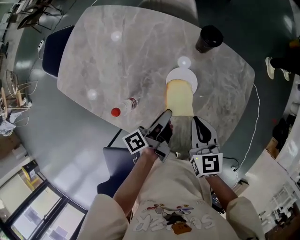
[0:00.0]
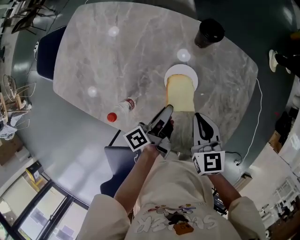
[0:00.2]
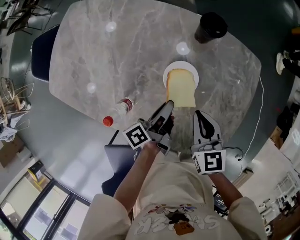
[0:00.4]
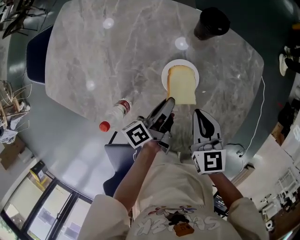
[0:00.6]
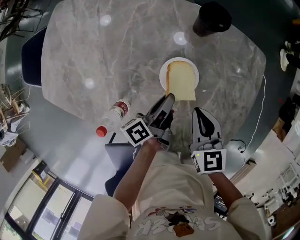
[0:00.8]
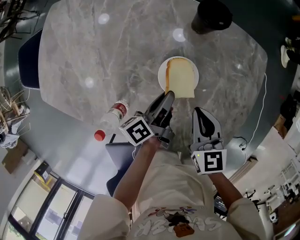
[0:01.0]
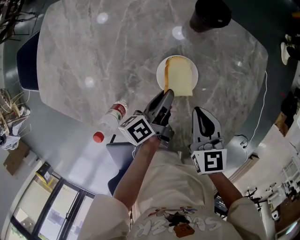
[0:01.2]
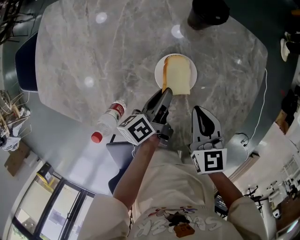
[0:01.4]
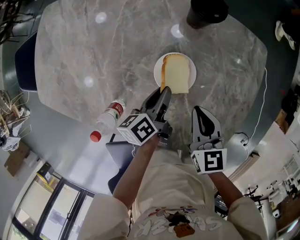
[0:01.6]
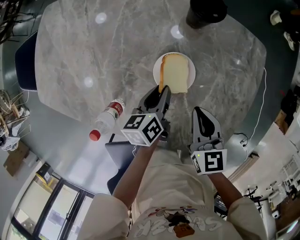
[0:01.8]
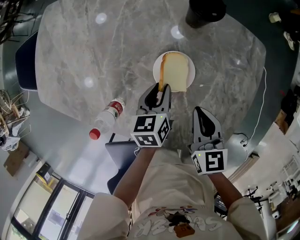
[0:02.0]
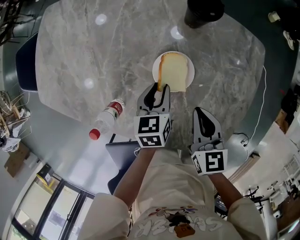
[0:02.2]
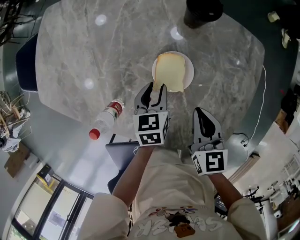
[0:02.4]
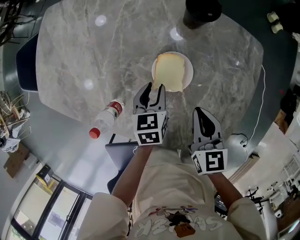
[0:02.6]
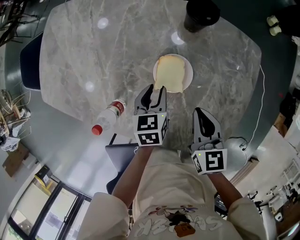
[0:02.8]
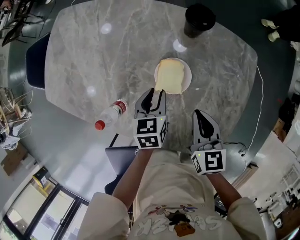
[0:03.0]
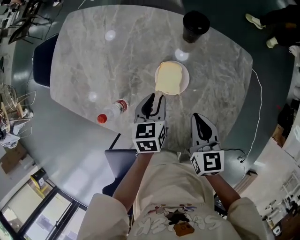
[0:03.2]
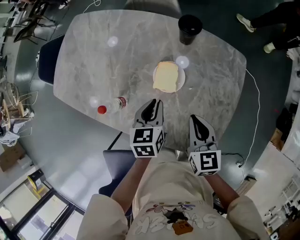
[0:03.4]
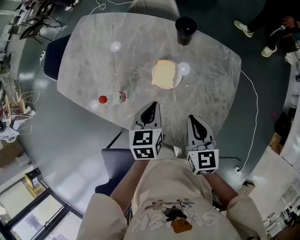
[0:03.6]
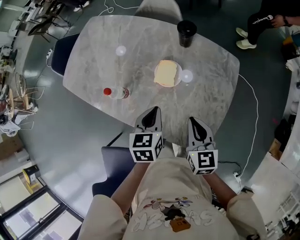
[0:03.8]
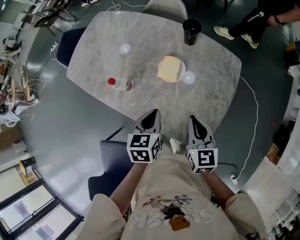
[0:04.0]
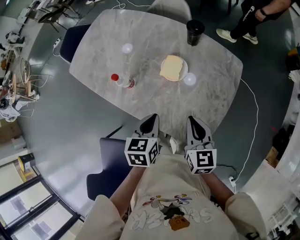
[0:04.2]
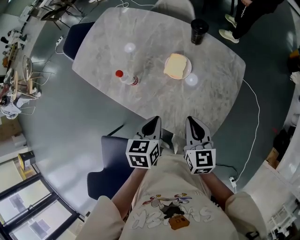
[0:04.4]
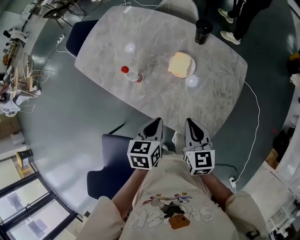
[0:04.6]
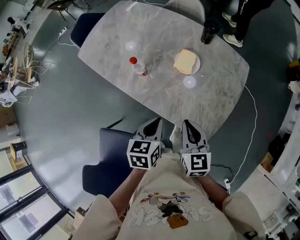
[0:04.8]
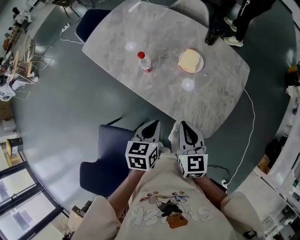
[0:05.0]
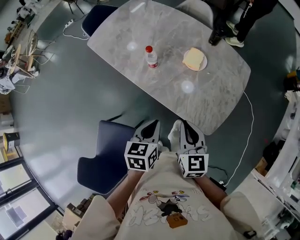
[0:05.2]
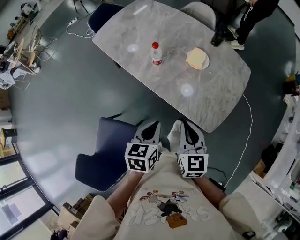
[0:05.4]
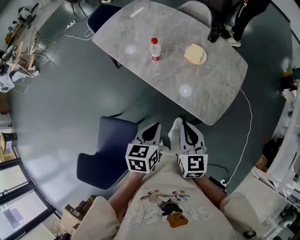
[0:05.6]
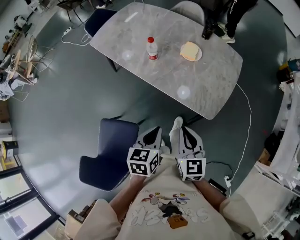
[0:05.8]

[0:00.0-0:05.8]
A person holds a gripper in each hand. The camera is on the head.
0:00.0 to 0:01.4: The right gripper travels downward by some 10 cm.
0:02.8 to 0:04.4: The right gripper changes place by some 20 cm.
0:04.4 to 0:05.8: The right gripper changes place by approximately 30 cm.

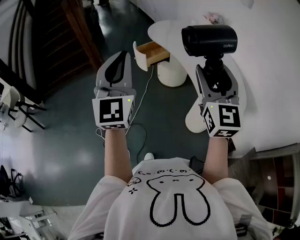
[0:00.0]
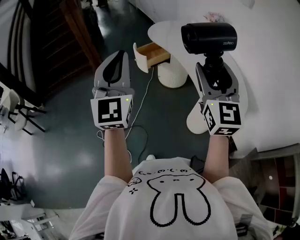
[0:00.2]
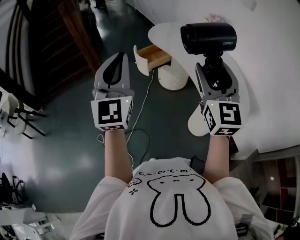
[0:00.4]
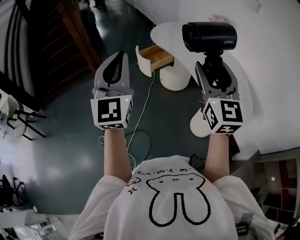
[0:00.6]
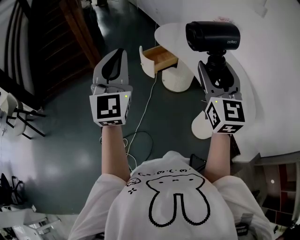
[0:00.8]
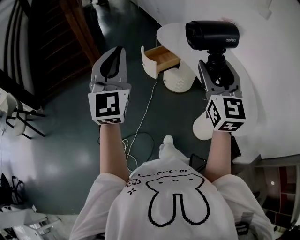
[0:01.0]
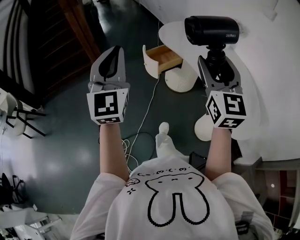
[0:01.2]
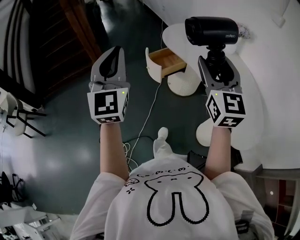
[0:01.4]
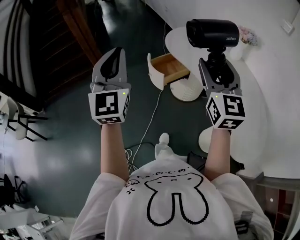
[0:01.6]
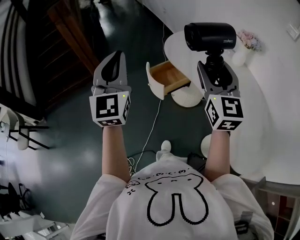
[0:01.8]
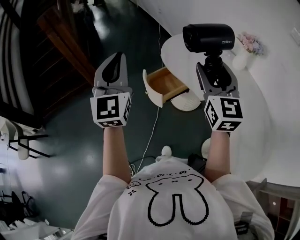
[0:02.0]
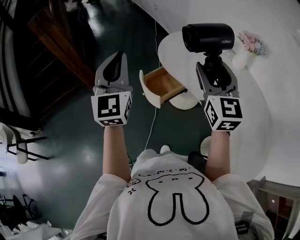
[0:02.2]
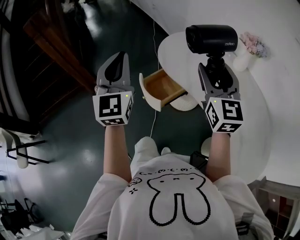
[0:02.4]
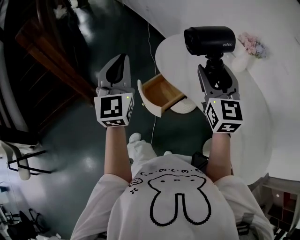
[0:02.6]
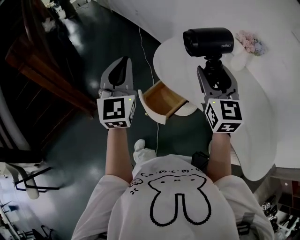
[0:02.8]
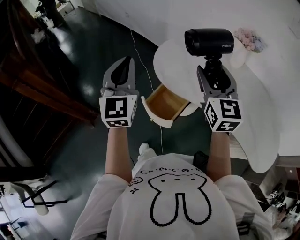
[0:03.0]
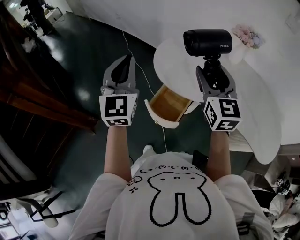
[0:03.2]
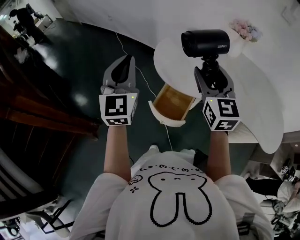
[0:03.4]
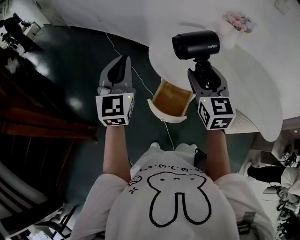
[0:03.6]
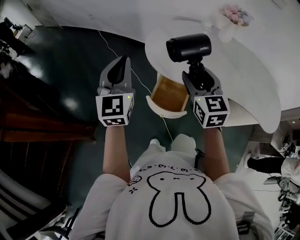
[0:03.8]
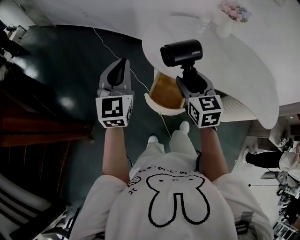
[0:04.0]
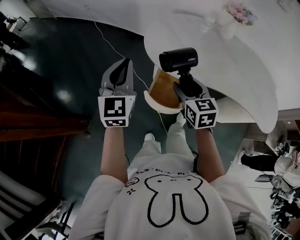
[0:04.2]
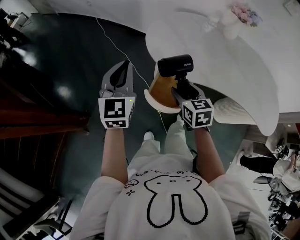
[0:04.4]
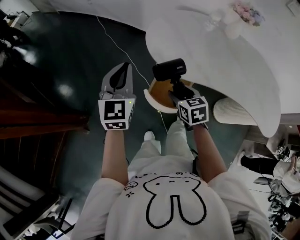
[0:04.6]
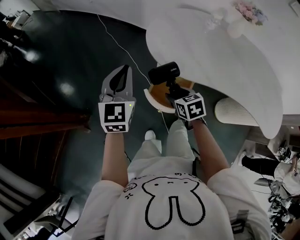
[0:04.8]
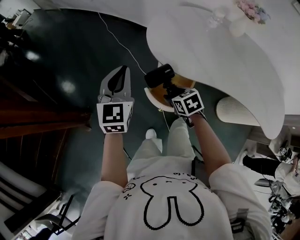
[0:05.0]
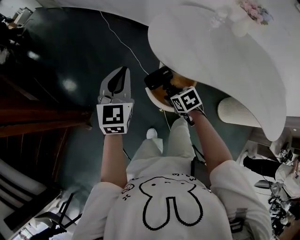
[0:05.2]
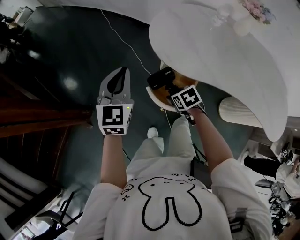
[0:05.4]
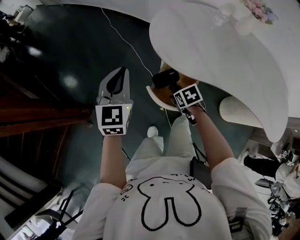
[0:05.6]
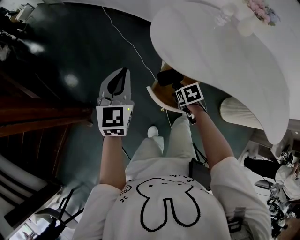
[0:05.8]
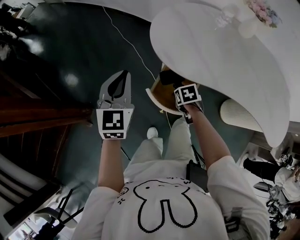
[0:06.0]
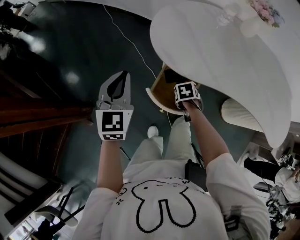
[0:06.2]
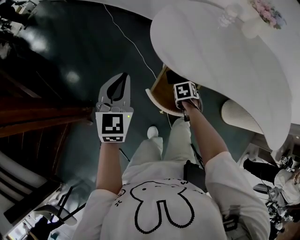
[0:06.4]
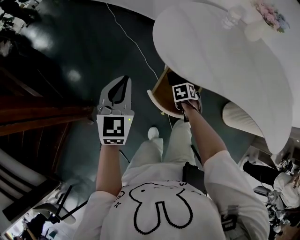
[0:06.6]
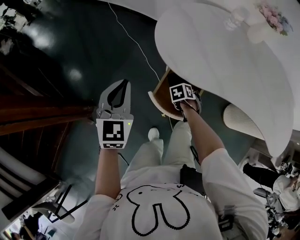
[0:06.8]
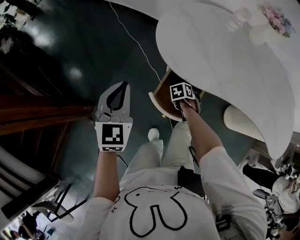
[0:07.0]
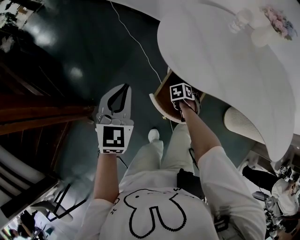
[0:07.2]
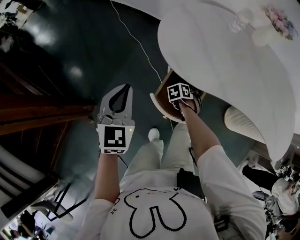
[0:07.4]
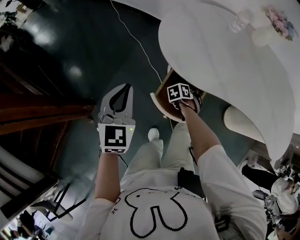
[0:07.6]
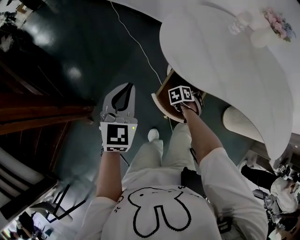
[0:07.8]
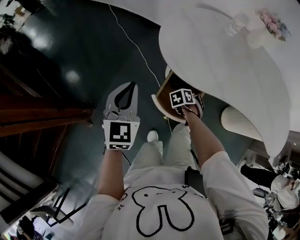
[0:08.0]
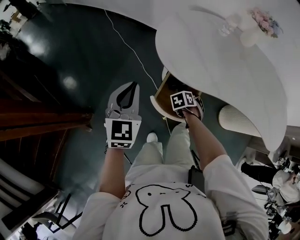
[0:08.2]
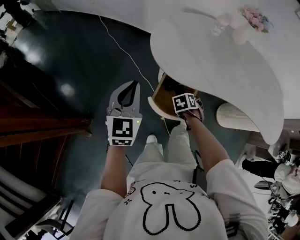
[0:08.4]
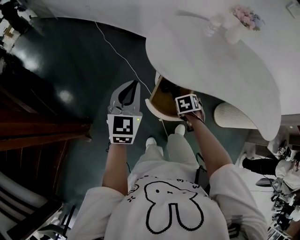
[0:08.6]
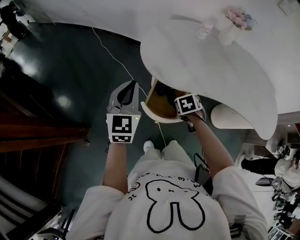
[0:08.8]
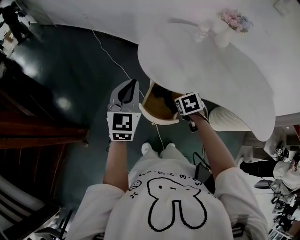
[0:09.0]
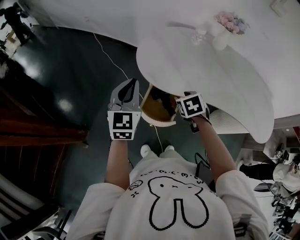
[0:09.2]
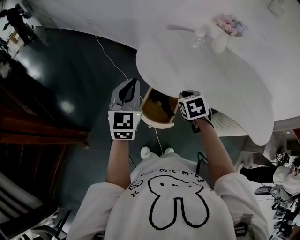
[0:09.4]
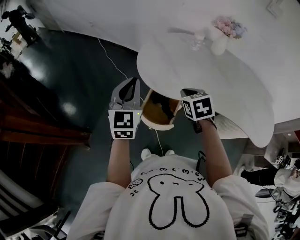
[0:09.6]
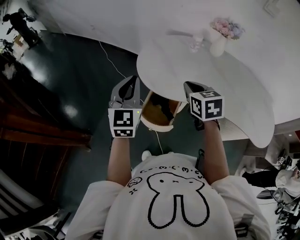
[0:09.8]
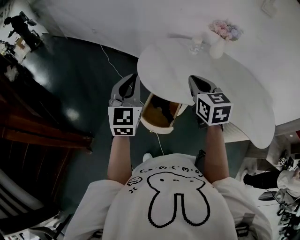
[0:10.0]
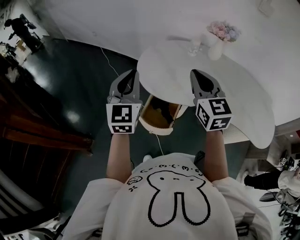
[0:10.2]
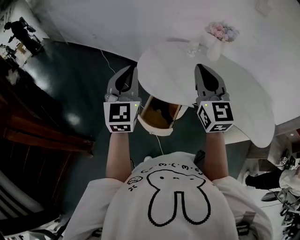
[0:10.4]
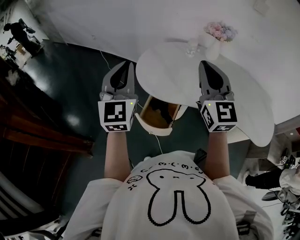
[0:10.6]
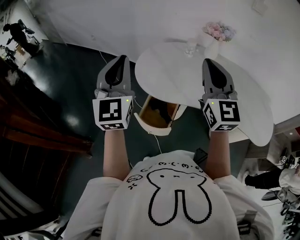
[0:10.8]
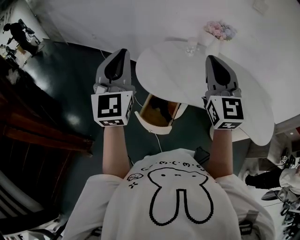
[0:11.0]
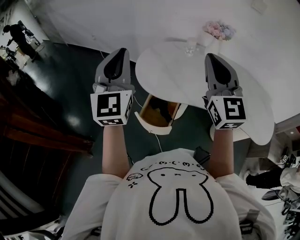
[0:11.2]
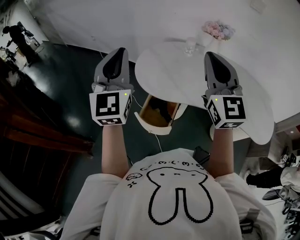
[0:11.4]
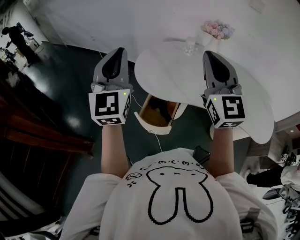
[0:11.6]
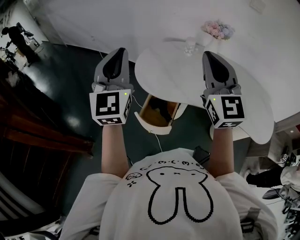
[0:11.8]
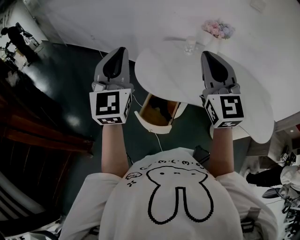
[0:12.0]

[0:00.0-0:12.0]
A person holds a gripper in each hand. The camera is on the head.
0:00.0 to 0:01.6: The left gripper heads forward and to the left, covering roughly 35 cm. Meanwhile the right gripper heads forward, covering approximately 30 cm.
0:01.6 to 0:03.0: Both grippers move forward, about 35 cm. The left gripper rotates approximately 30 degrees, while the right gripper swivels some 20 degrees.
0:03.0 to 0:04.4: The left gripper moves downward, to the left and forward, roughly 20 cm, and swivels approximately 20 degrees; the right gripper goes about 30 cm downward and to the left, and angles its fingers downward, by approximately 30 degrees.
0:04.4 to 0:06.0: The right gripper is displaced downward by roughly 20 cm, and tilts its fingers roughly 40 degrees downward. The left gripper moves downward, roughly 5 cm.
0:06.0 to 0:07.6: The right gripper heads downward, covering some 5 cm, and swivels about 30 degrees.
0:07.6 to 0:09.0: The left gripper travels upward by approximately 10 cm. Meanwhile the right gripper moves upward, some 20 cm, and rotates approximately 30 degrees.
0:09.0 to 0:10.4: The right gripper is displaced upward by some 35 cm, points its fingers some 70 degrees further upward, and closes its fingers; the left gripper heads upward, covering some 15 cm.
0:10.4 to 0:12.0: The two grippers go roughly 5 cm upward.

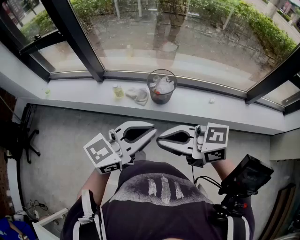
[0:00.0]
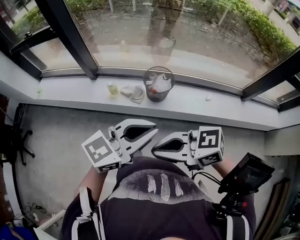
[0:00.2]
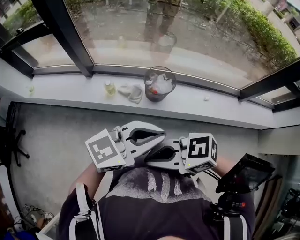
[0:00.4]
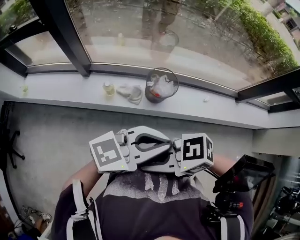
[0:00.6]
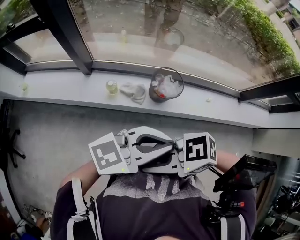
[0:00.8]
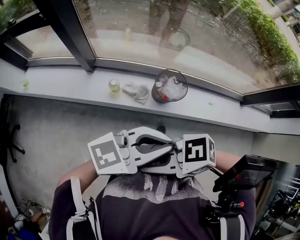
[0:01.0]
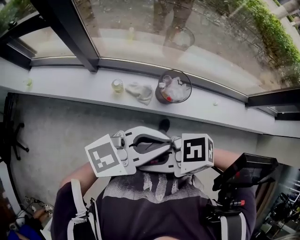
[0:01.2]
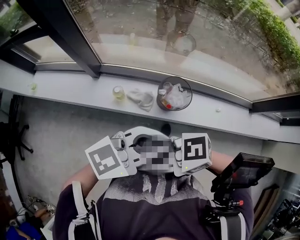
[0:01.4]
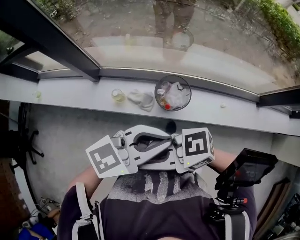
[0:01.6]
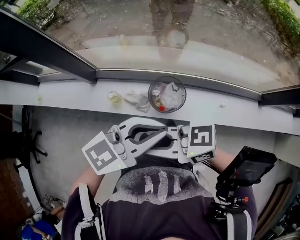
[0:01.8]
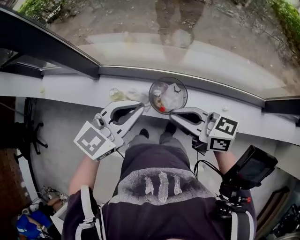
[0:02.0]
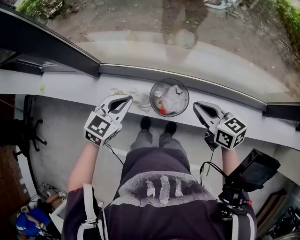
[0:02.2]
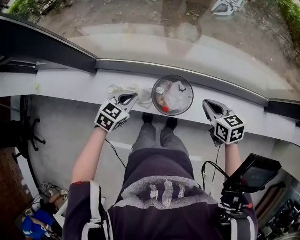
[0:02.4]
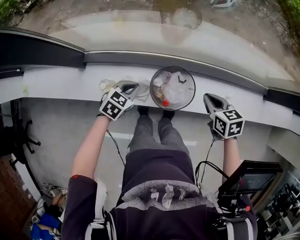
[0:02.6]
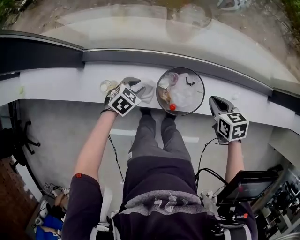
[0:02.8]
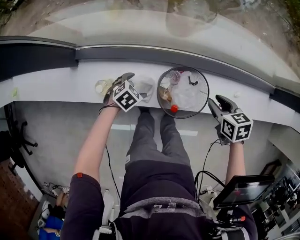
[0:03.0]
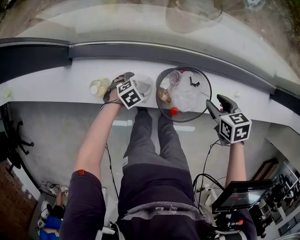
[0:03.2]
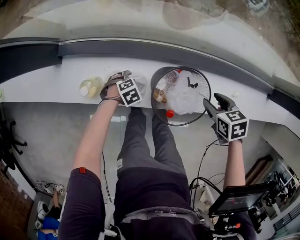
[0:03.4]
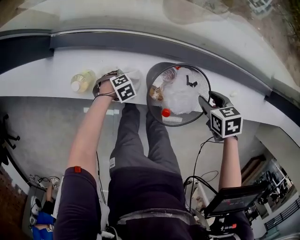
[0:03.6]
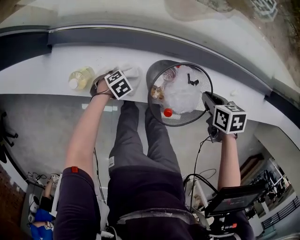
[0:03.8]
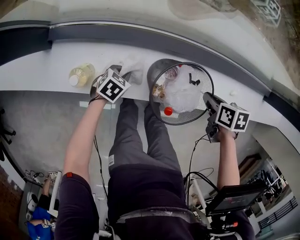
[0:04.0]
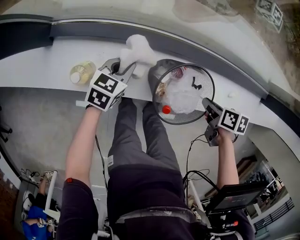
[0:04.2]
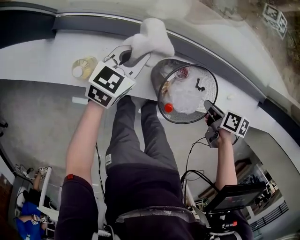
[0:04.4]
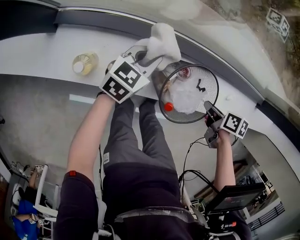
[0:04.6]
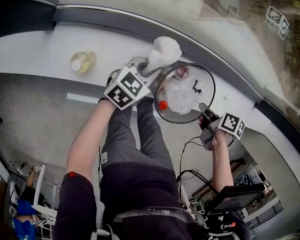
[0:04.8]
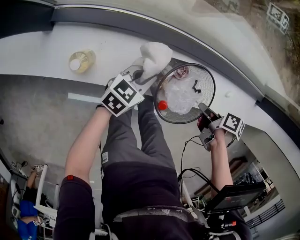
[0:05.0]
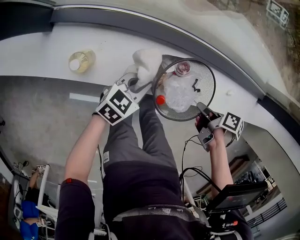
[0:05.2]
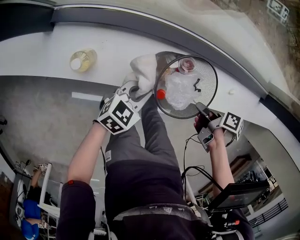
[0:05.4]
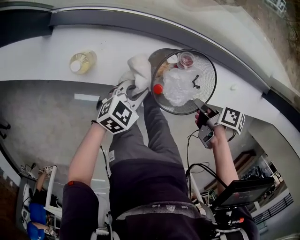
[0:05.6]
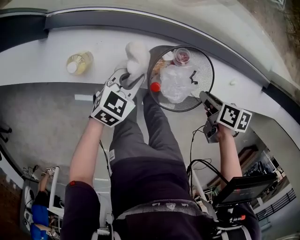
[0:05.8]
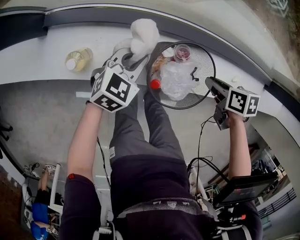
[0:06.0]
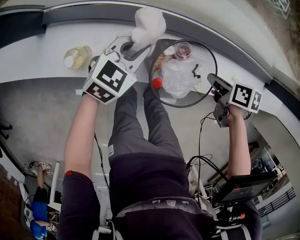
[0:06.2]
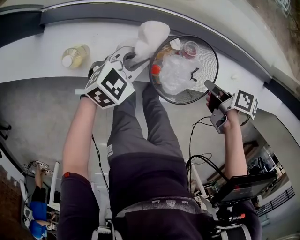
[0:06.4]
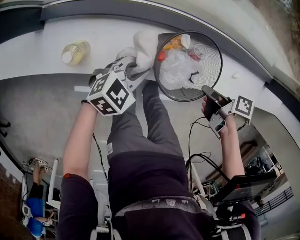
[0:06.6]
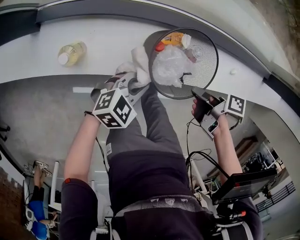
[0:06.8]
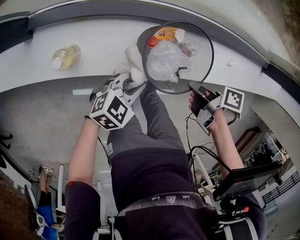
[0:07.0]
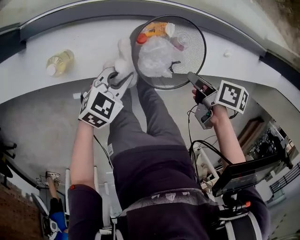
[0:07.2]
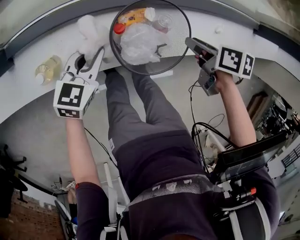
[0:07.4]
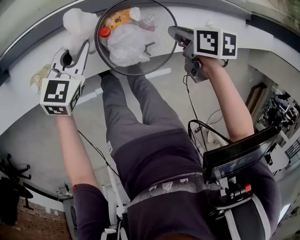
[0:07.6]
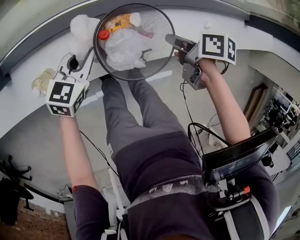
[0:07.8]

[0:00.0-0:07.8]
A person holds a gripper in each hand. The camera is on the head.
0:00.0 to 0:01.6: The left gripper moves approximately 20 cm.
0:01.6 to 0:03.2: The left gripper shifts approximately 60 cm downward, points its fingers roughly 60 degrees further downward, and opens its fingers.
0:03.2 to 0:04.6: The left gripper goes some 15 cm upward, tips its fingers upward by roughly 40 degrees, and closes its fingers.
